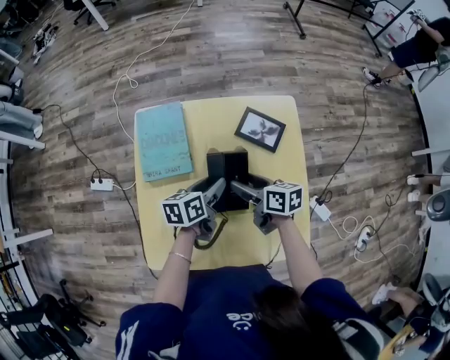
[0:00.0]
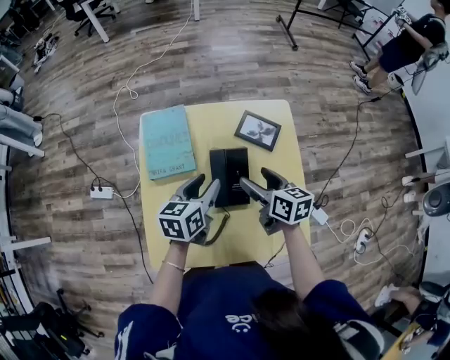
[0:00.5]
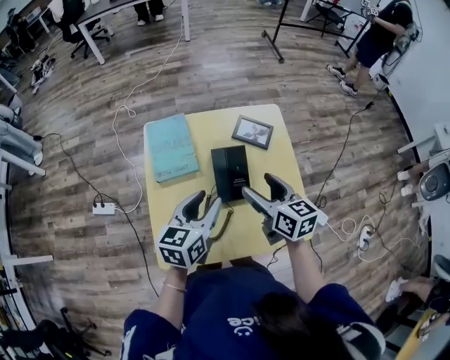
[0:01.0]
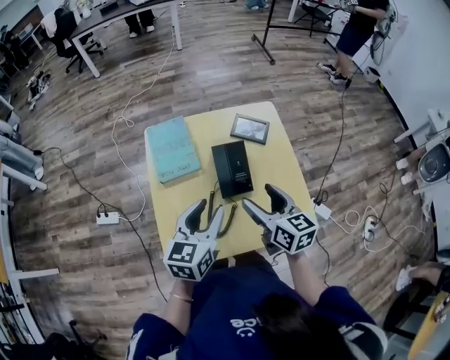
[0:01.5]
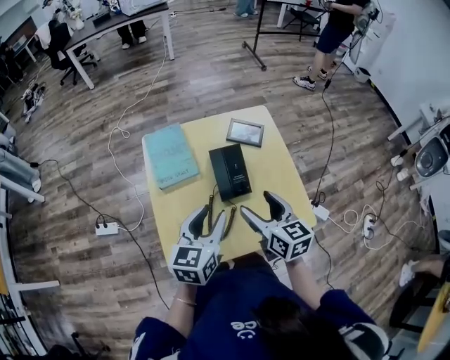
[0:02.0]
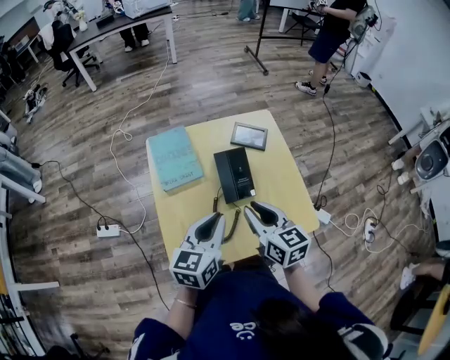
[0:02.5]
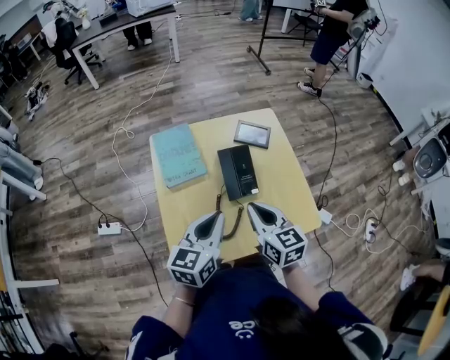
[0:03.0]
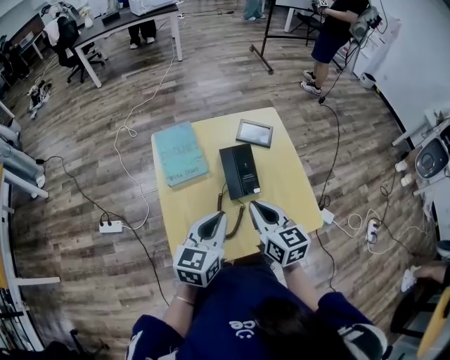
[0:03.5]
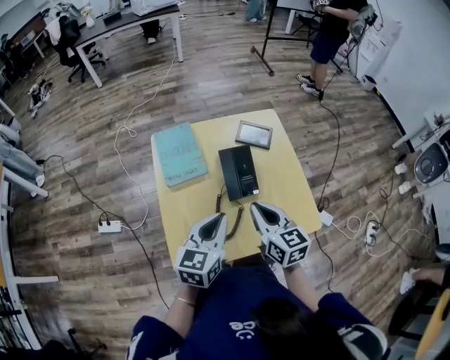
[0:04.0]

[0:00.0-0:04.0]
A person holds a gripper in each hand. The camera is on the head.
0.0 to 2.0 s: Both grippers move upward and backward, roughly 20 cm. The left gripper swivels approximately 40 degrees. The right gripper changes its angle by roughly 40 degrees.
2.0 to 4.0 s: The left gripper closes its fingers, while the right gripper closes its fingers.

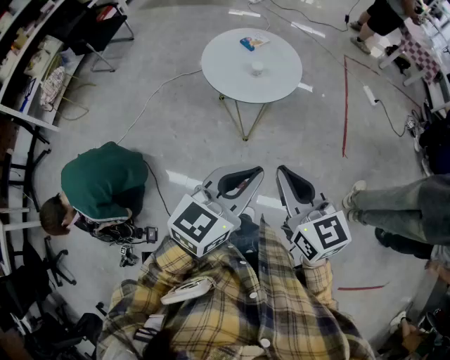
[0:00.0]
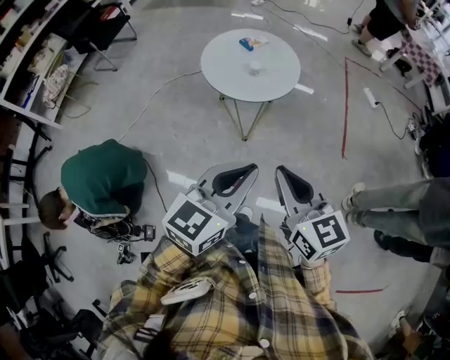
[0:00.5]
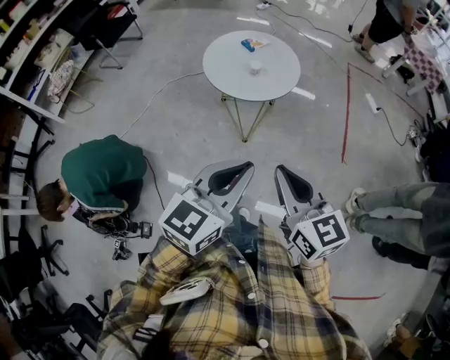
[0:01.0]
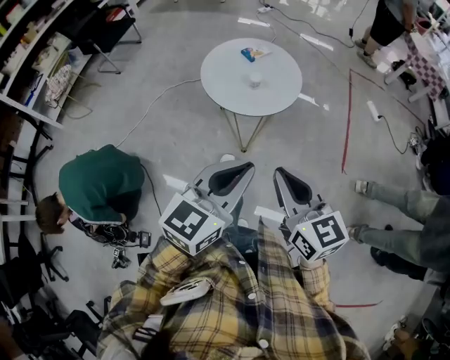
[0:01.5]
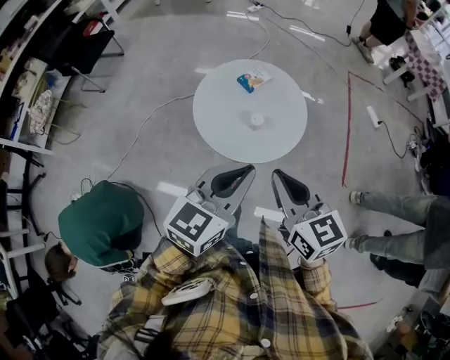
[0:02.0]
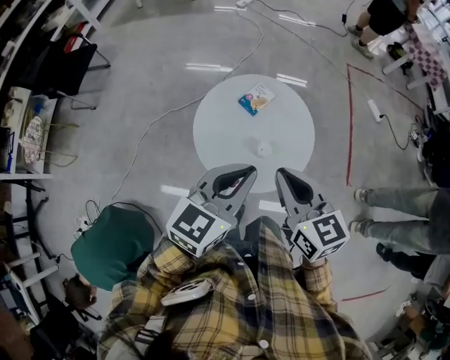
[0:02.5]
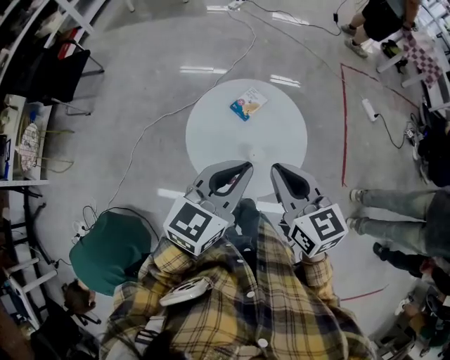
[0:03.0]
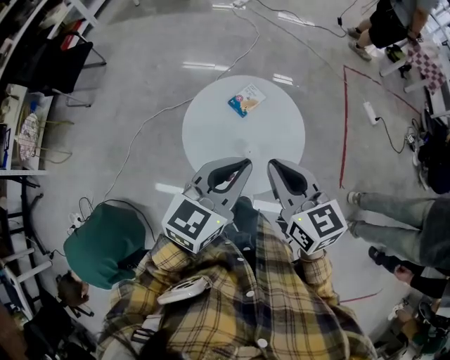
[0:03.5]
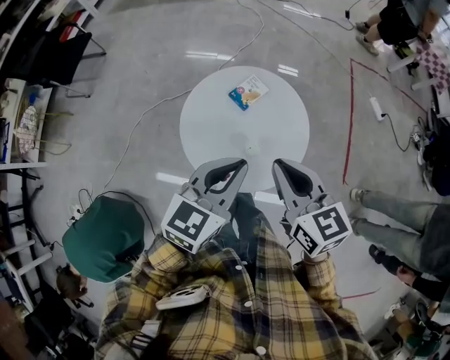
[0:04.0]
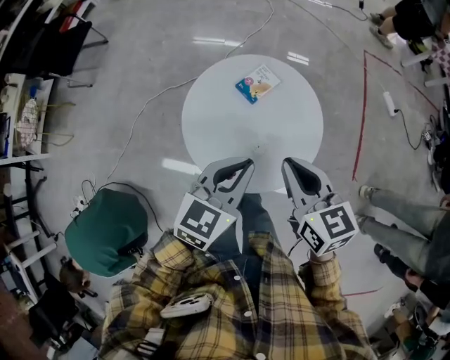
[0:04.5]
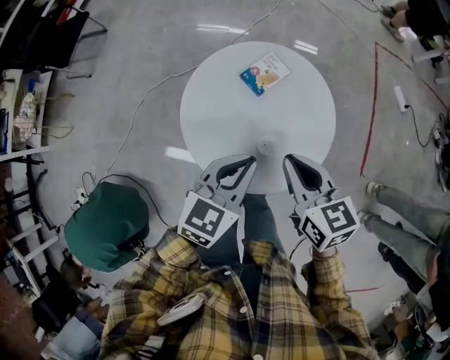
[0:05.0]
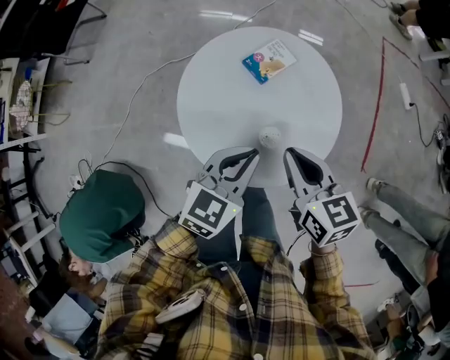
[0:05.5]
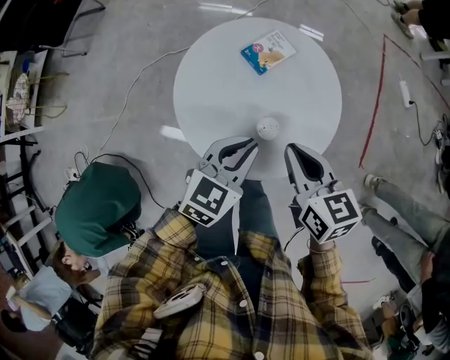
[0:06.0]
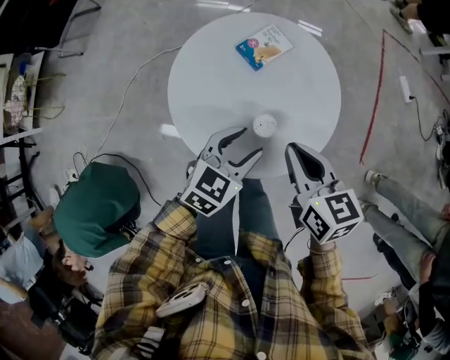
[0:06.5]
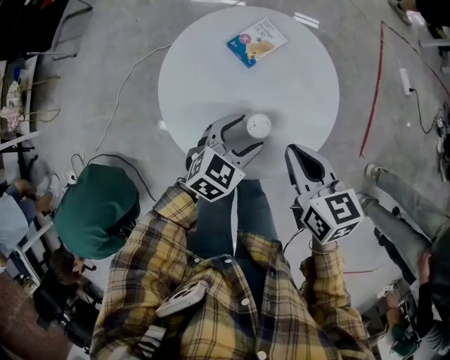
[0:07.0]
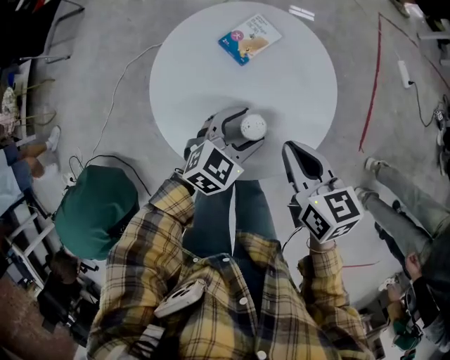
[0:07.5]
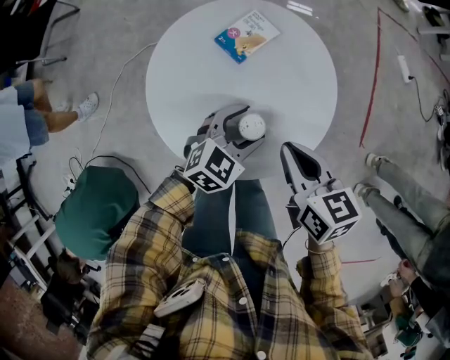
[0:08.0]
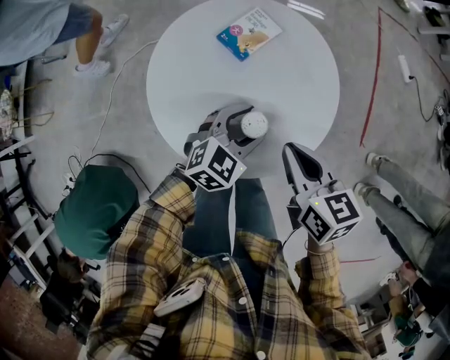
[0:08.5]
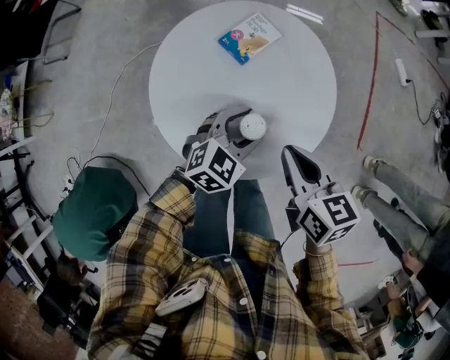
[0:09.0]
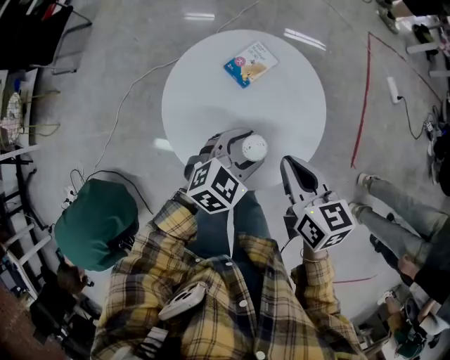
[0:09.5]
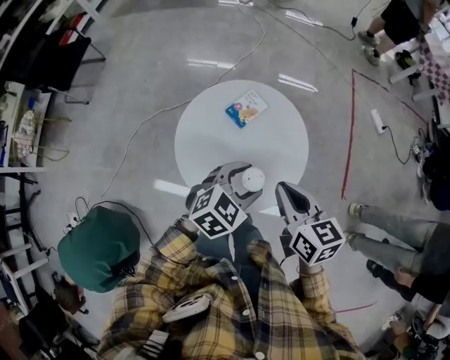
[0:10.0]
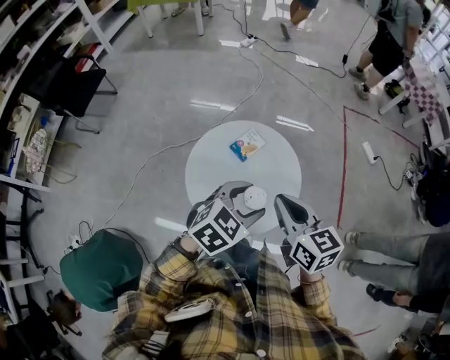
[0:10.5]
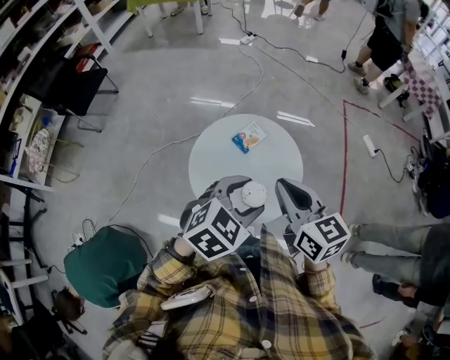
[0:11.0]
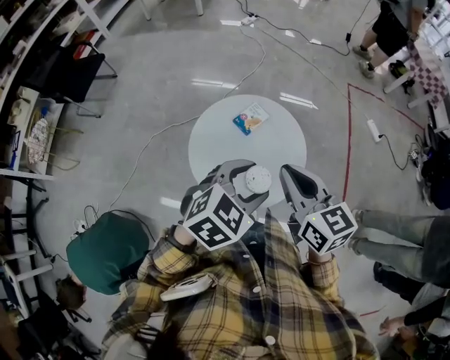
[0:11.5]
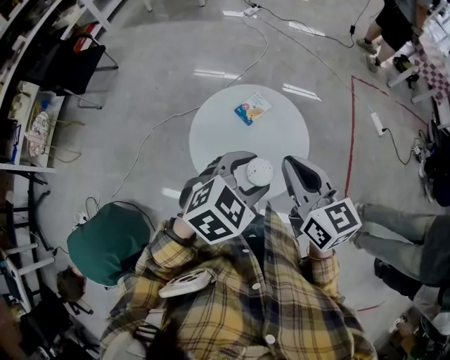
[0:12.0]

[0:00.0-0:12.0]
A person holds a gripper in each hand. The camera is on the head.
0.0 to 2.0 s: Both grippers travel together forward, approximately 25 cm.
2.0 to 4.0 s: The grippers both shift forward by about 15 cm.
4.0 to 6.0 s: The grippers both shift downward by roughly 15 cm.
6.0 to 8.0 s: The right gripper shifts by approximately 5 cm, while the left gripper travels downward by about 10 cm, turns by some 20 degrees, and opens its fingers.
8.0 to 10.0 s: The two grippers go approximately 15 cm upward.
10.0 to 12.0 s: Both grippers travel together upward, roughly 15 cm.

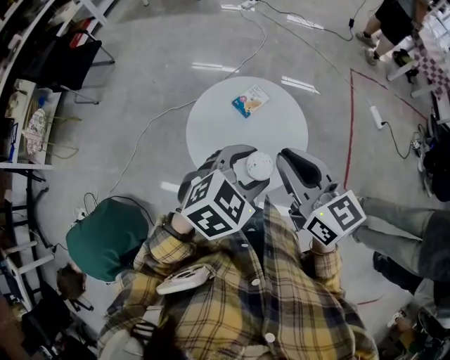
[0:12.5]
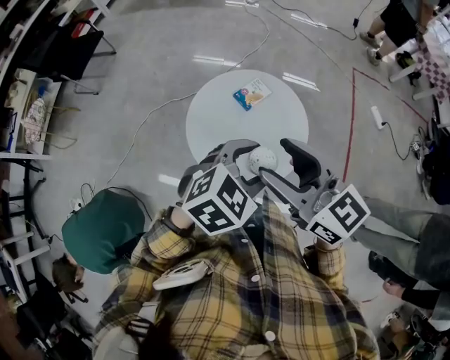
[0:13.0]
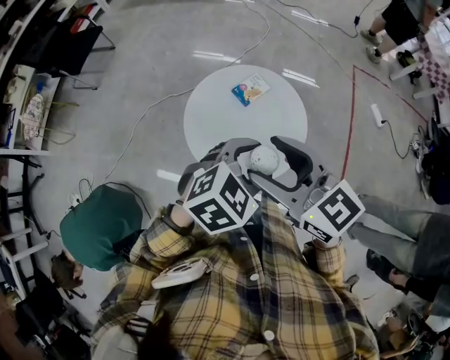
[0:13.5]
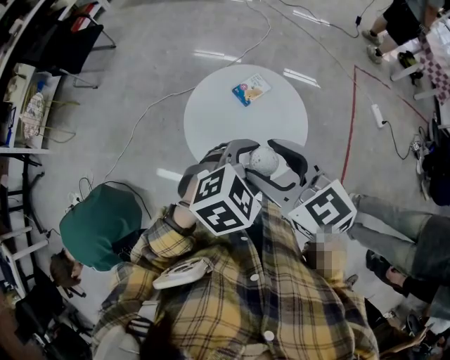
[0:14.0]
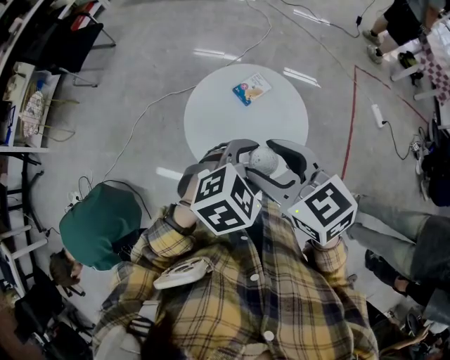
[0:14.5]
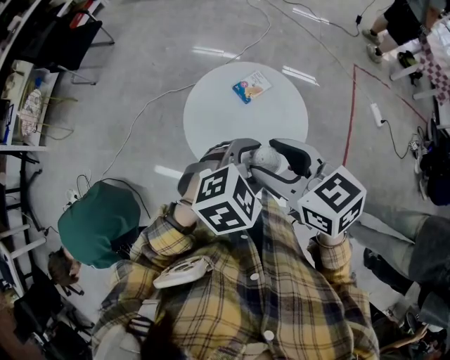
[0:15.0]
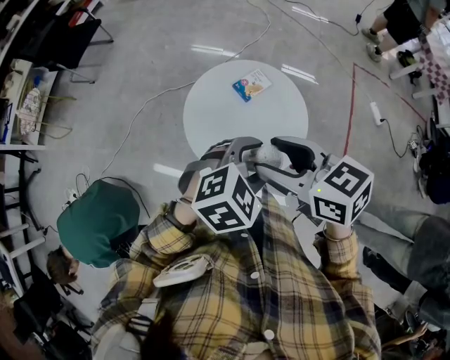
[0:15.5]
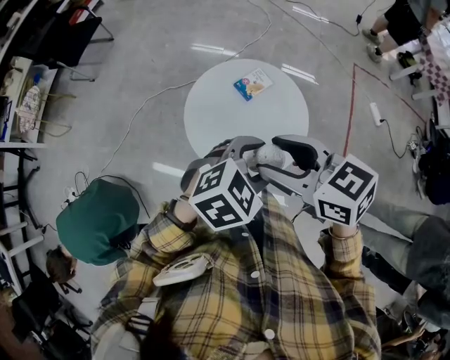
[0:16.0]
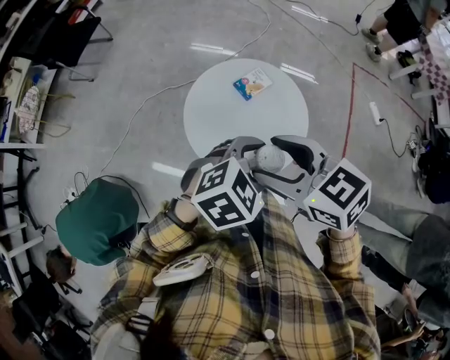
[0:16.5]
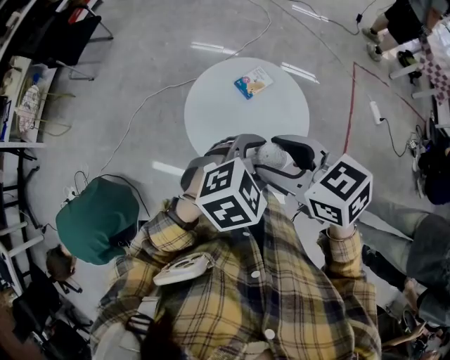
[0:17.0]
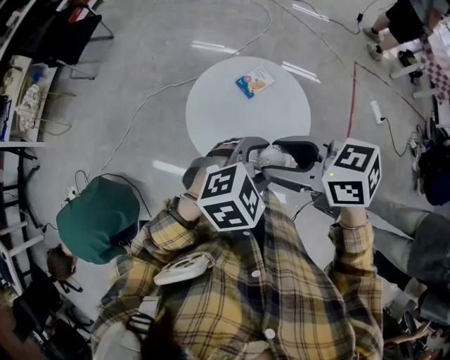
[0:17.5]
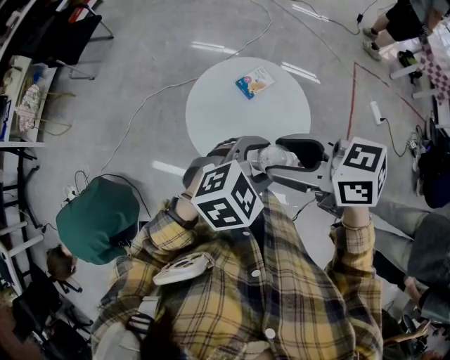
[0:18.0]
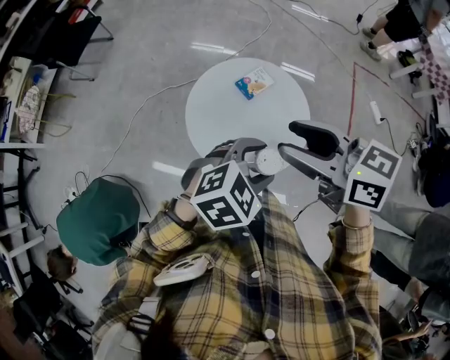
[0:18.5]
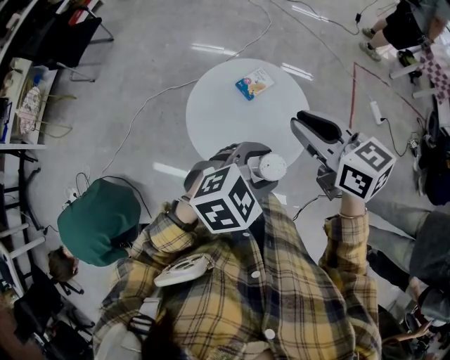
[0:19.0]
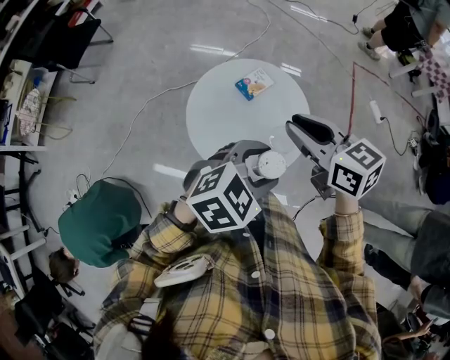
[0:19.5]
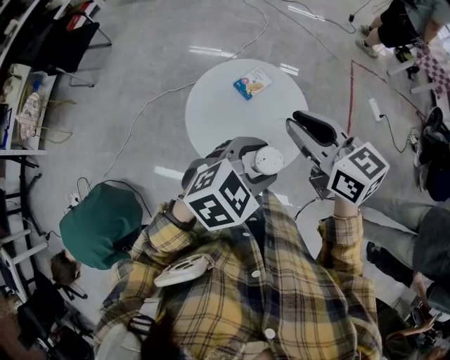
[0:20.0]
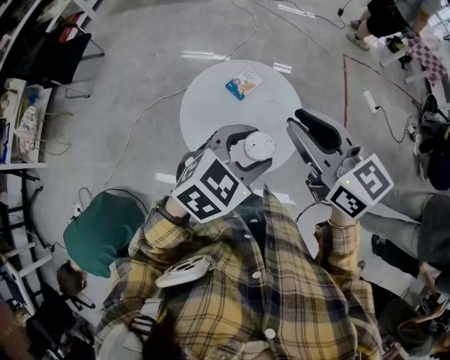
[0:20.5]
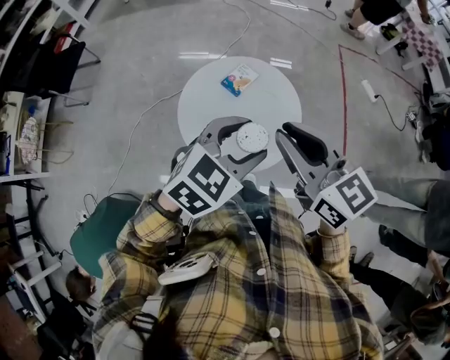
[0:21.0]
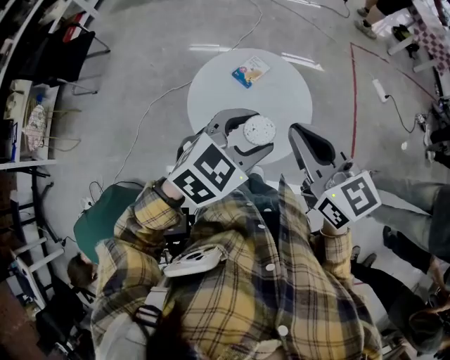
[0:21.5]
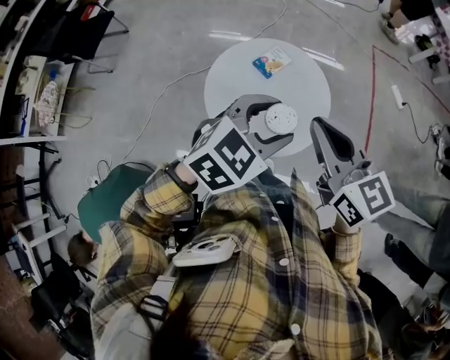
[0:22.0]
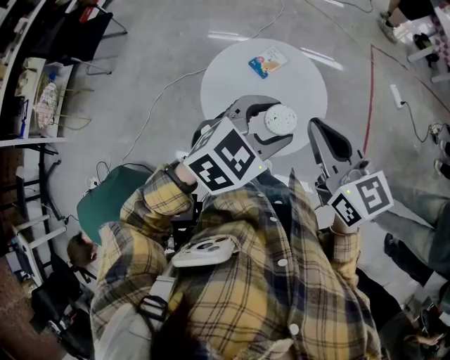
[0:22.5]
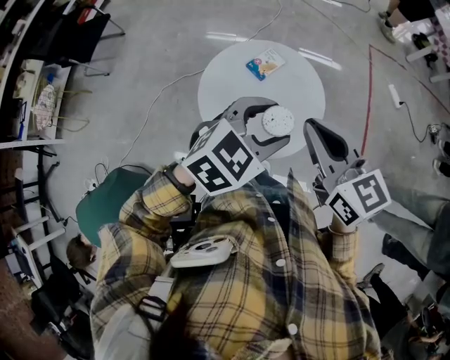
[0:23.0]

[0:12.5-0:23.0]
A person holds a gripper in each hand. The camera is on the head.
12.5 to 14.5 s: The right gripper changes place by about 5 cm, changes its angle by about 30 degrees, and opens.
14.5 to 16.5 s: The grippers move only a little.
16.5 to 19.0 s: The right gripper moves some 10 cm, and closes its fingers.
19.0 to 21.0 s: The left gripper changes place by about 5 cm. The right gripper travels backward by approximately 5 cm.
21.0 to 23.0 s: The grippers make only small movements.

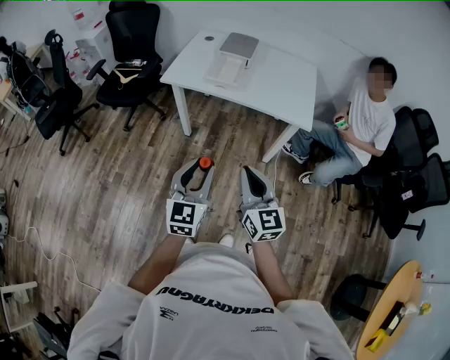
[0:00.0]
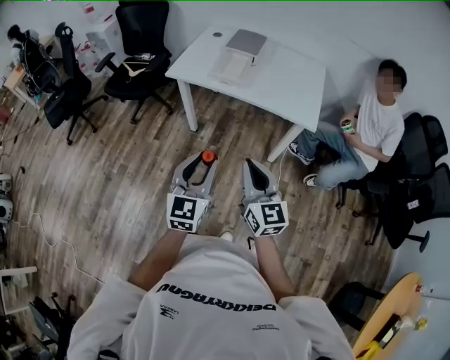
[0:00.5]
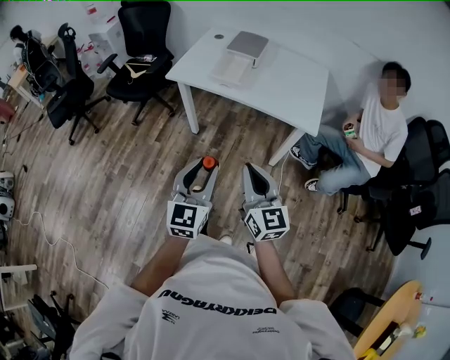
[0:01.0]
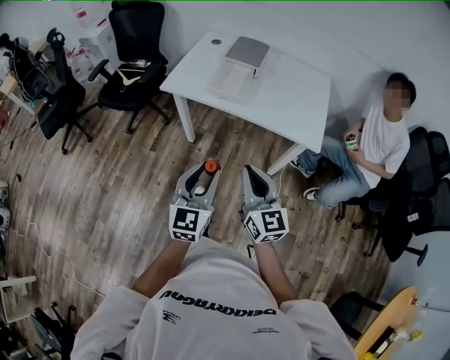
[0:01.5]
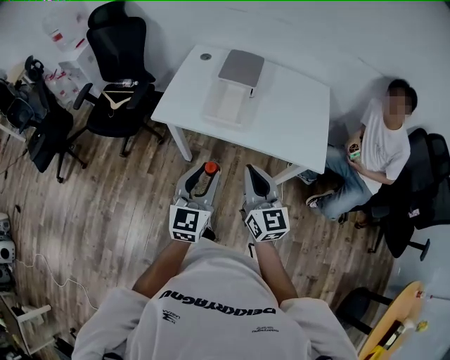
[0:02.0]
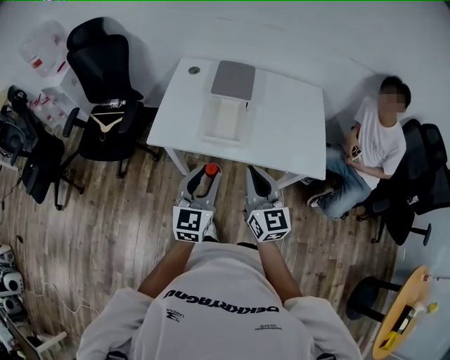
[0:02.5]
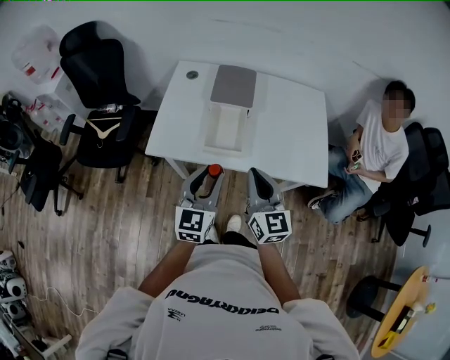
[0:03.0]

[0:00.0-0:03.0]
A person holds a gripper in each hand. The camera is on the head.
0.0 to 1.5 s: Both grippers move forward, roughly 10 cm.
1.5 to 3.0 s: The grippers both shift forward by about 30 cm.
